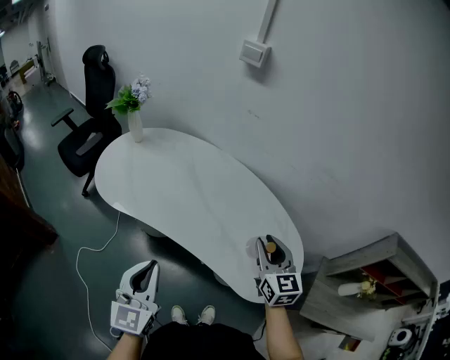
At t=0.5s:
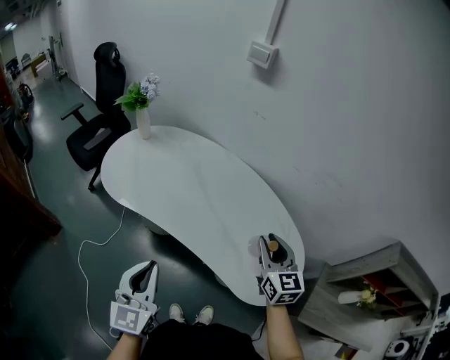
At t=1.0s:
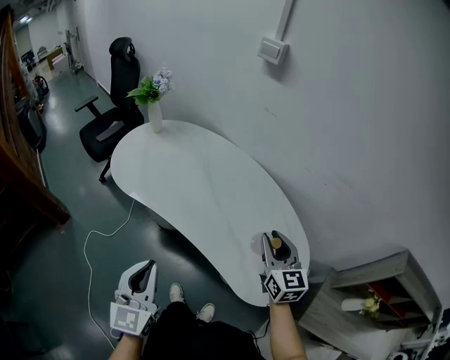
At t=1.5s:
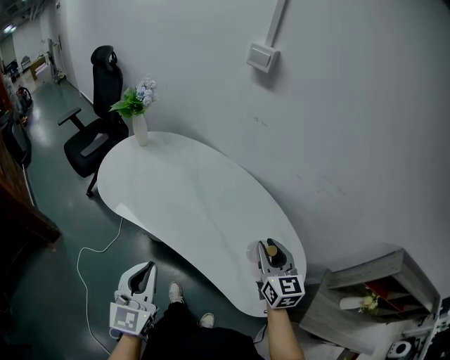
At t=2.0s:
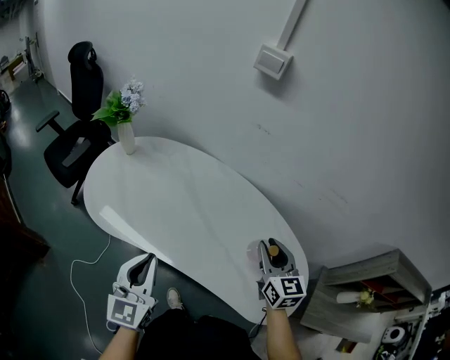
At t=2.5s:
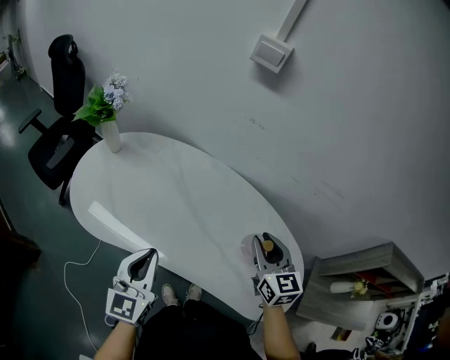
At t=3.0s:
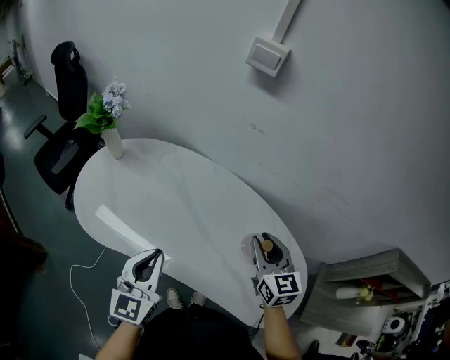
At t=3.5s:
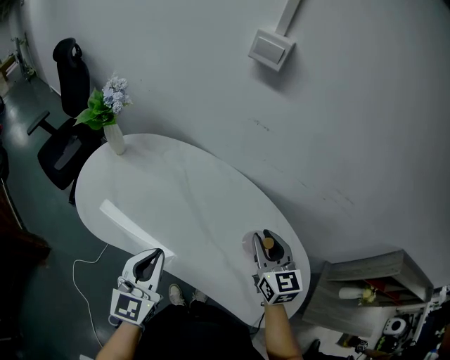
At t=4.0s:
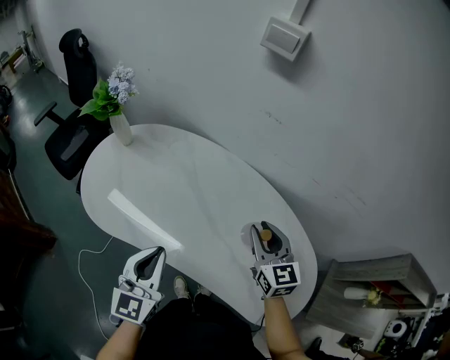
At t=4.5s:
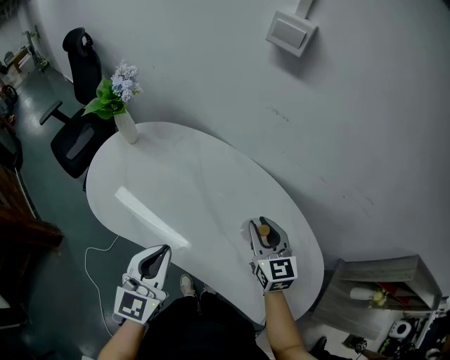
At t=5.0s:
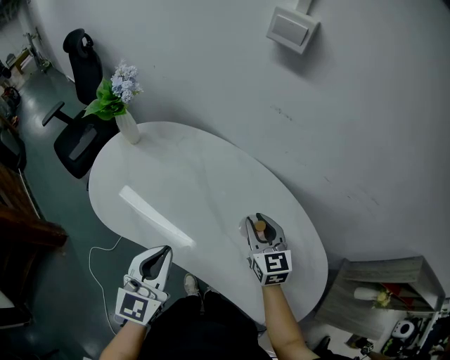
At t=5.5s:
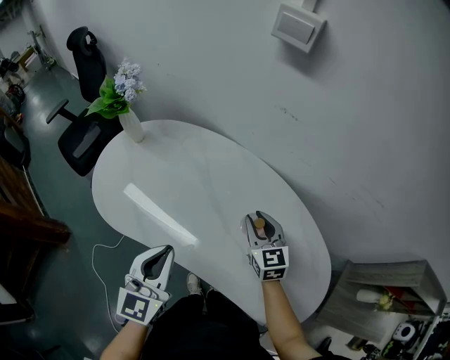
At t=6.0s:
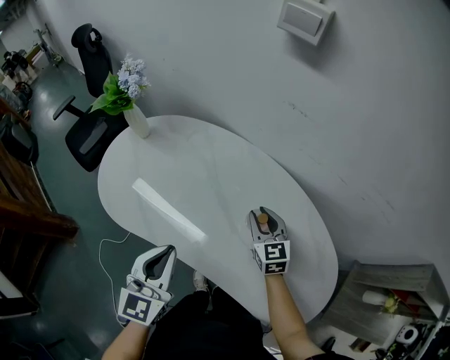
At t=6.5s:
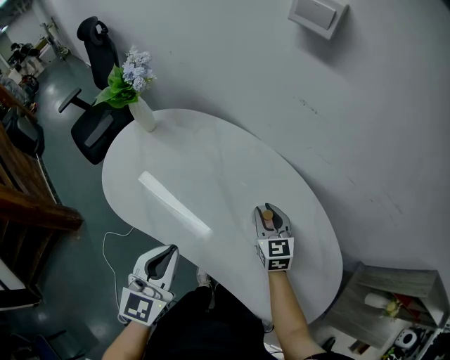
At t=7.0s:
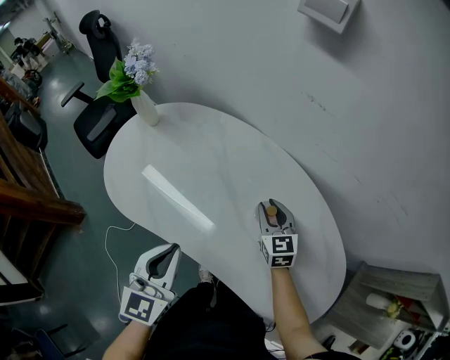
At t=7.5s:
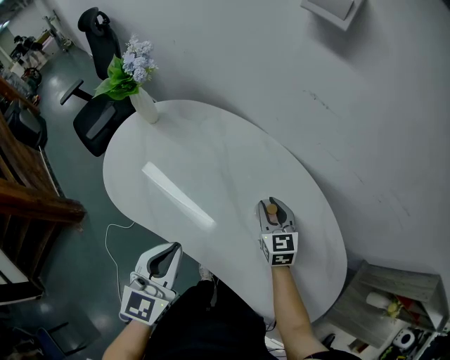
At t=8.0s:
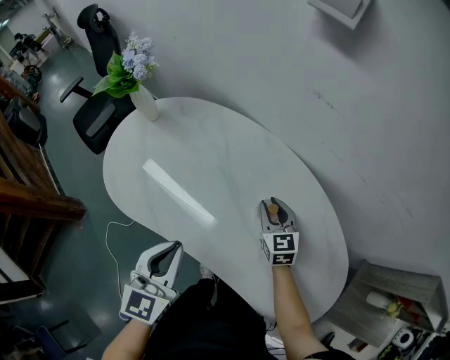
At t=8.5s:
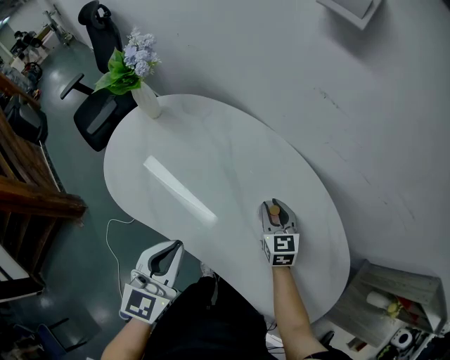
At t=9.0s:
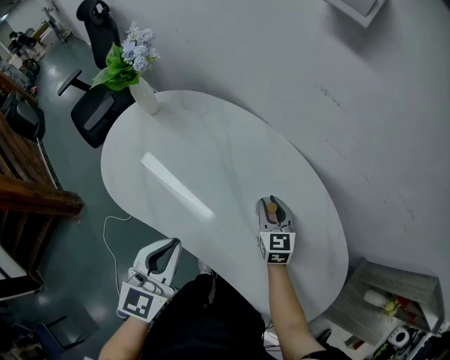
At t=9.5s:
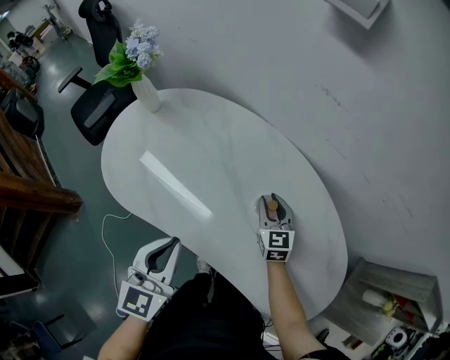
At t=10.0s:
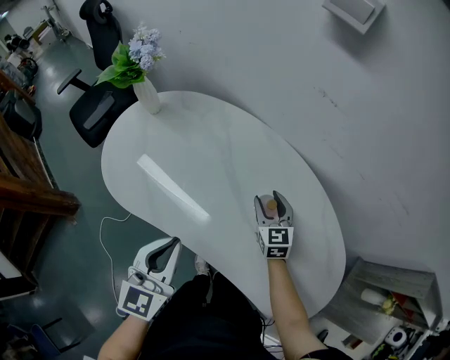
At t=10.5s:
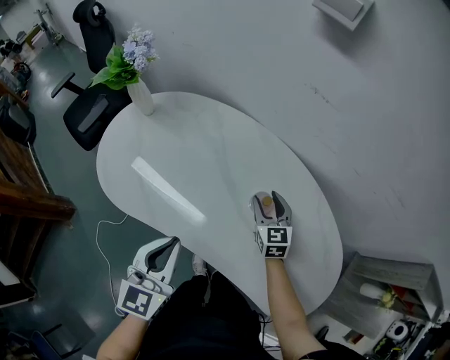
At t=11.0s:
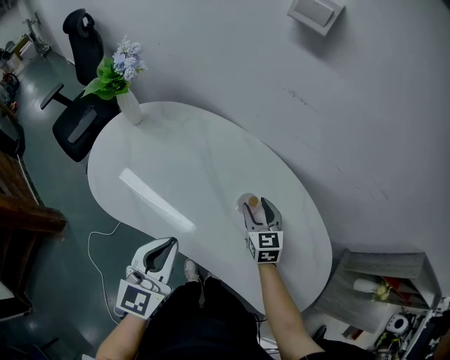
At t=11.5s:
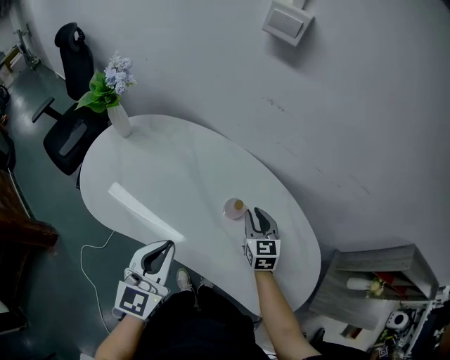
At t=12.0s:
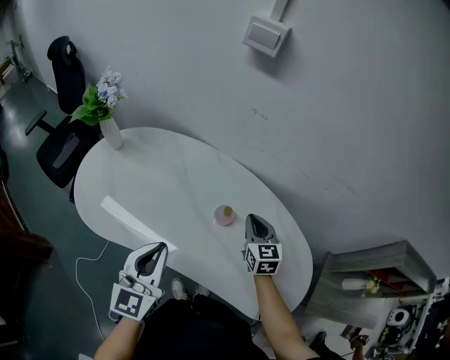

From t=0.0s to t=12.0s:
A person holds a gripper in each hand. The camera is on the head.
From t=0.0s to t=2.0s: The grippers both shift forward by about 10 cm.
From t=2.0s to t=4.0s: Both grippers travel together forward, approximately 5 cm.
From t=4.0s to t=6.0s: The right gripper goes about 15 cm downward and forward.
From t=6.0s to t=8.0s: The right gripper ends up some 5 cm from where it was.
From t=8.0s to t=10.0s: The right gripper opens.
From t=10.0s to t=12.0s: The left gripper ends up some 5 cm from where it was. Meanwhile the right gripper is displaced to the right, upward and backward by approximately 15 cm, and closes up.

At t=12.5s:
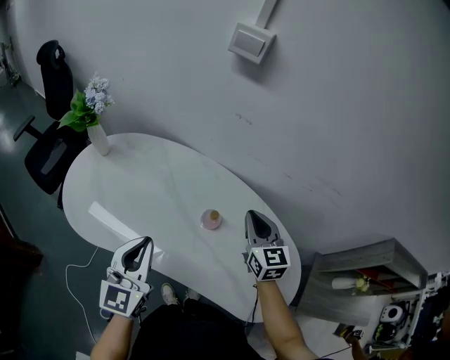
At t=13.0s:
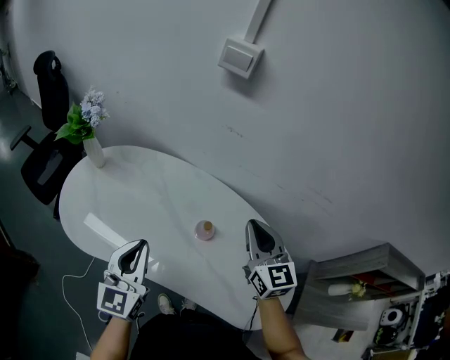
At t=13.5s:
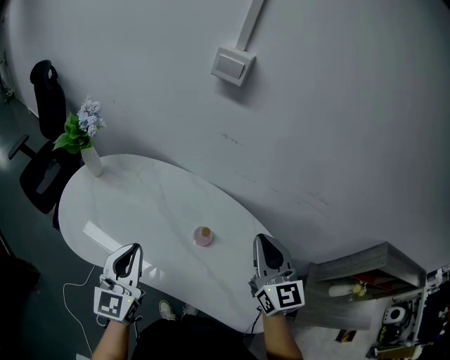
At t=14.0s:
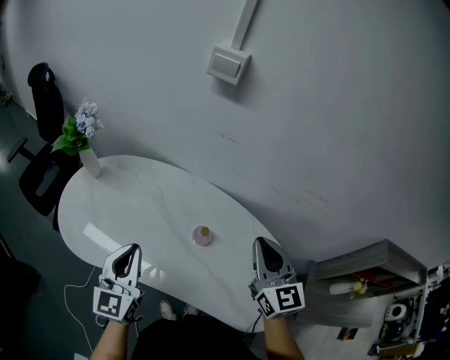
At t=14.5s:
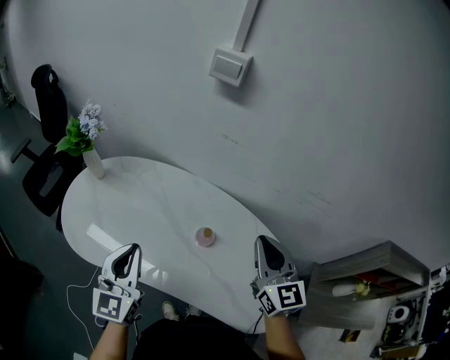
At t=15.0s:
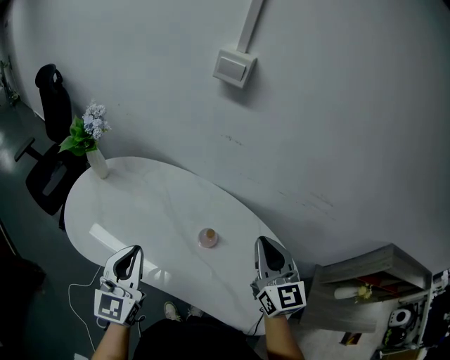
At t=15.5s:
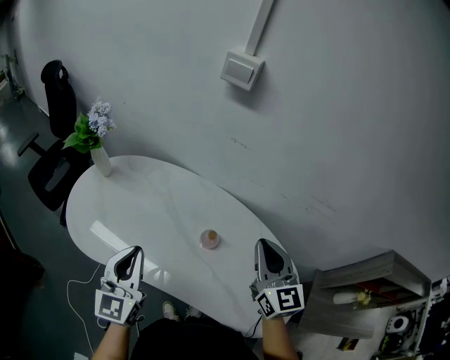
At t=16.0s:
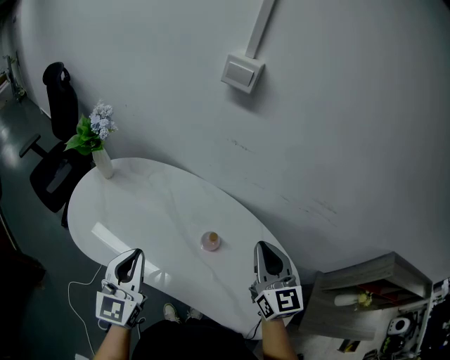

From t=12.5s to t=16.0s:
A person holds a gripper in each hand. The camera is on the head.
From t=12.5s to t=14.5s: The right gripper is displaced upward and backward by approximately 10 cm.
From t=14.5s to t=16.0s: The grippers make only small movements.

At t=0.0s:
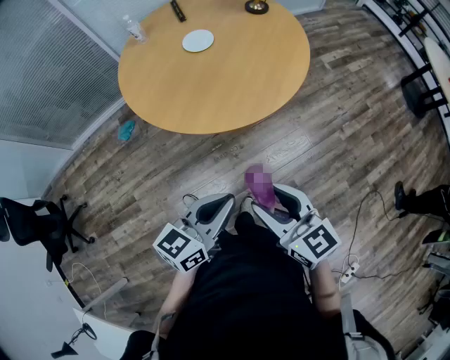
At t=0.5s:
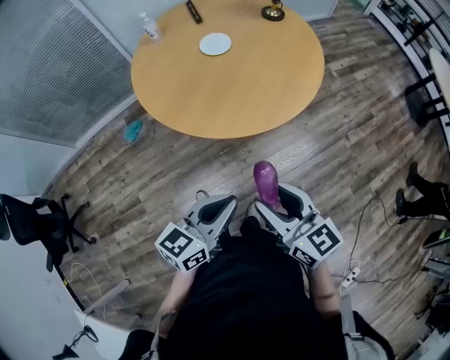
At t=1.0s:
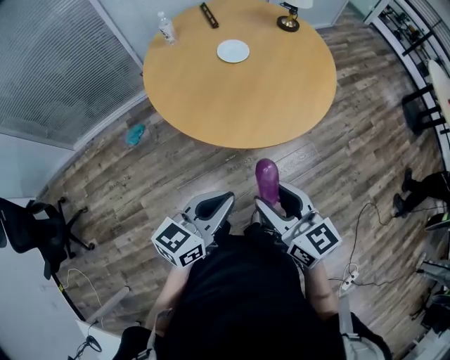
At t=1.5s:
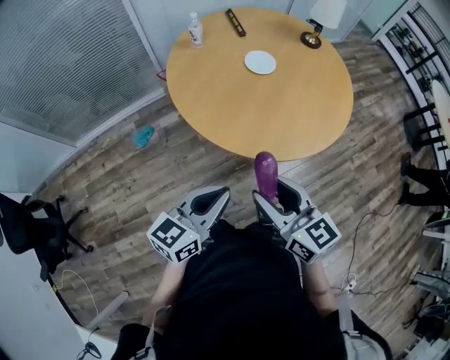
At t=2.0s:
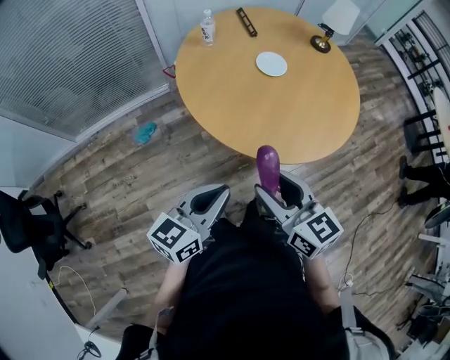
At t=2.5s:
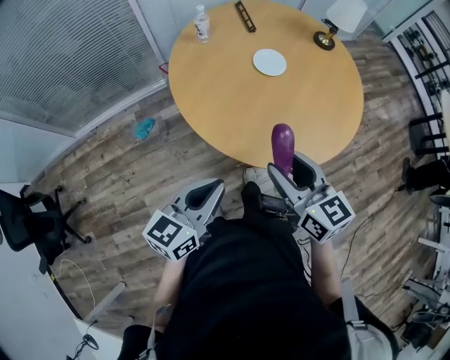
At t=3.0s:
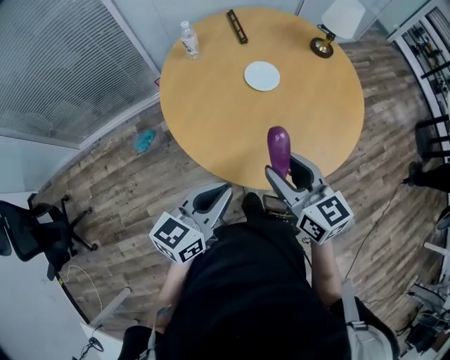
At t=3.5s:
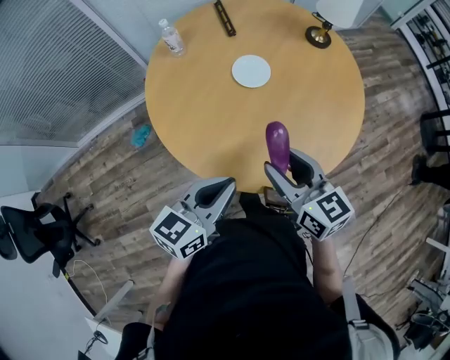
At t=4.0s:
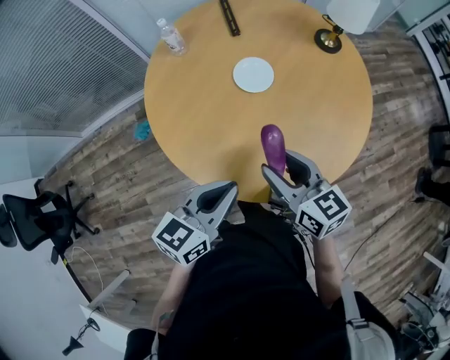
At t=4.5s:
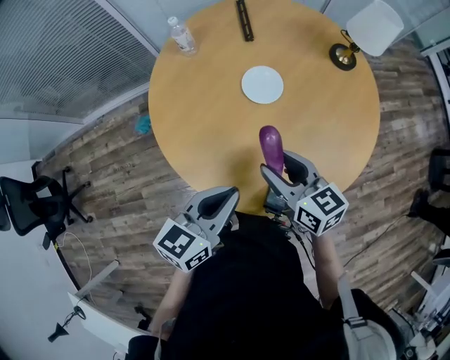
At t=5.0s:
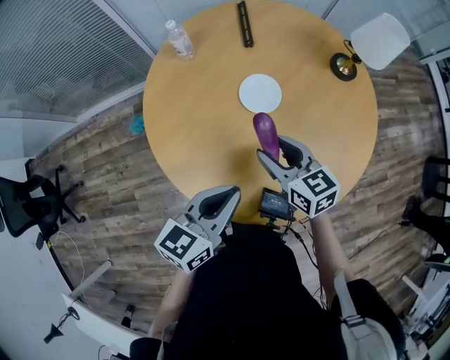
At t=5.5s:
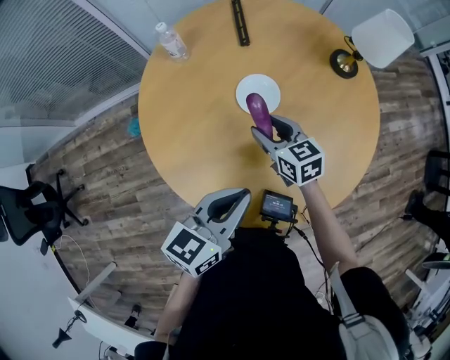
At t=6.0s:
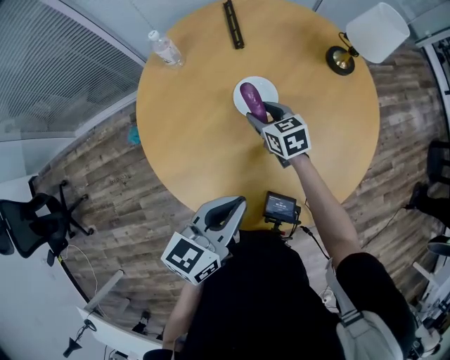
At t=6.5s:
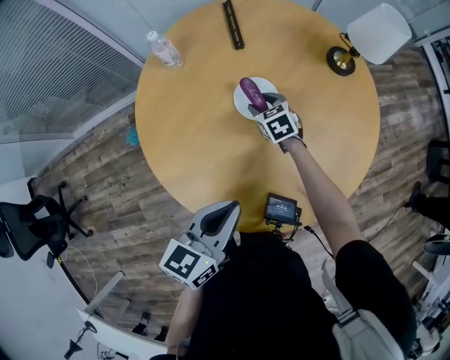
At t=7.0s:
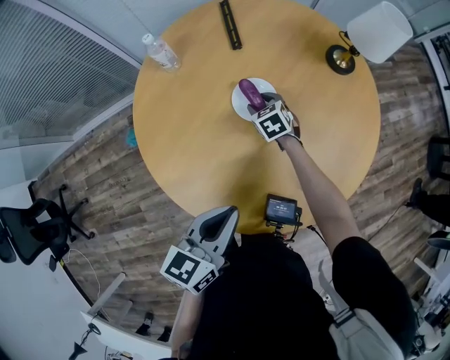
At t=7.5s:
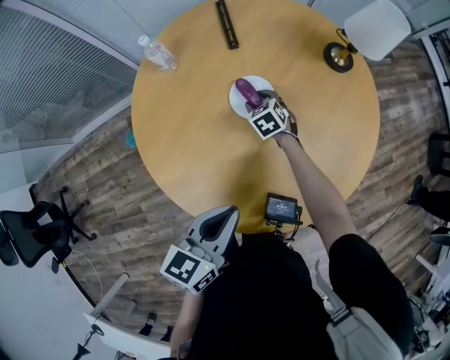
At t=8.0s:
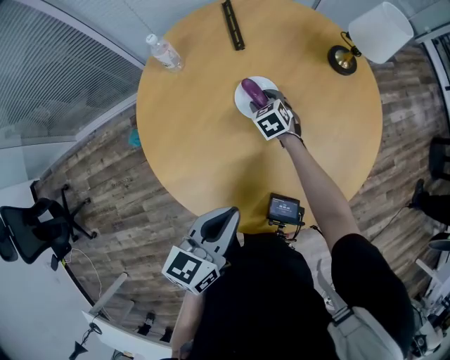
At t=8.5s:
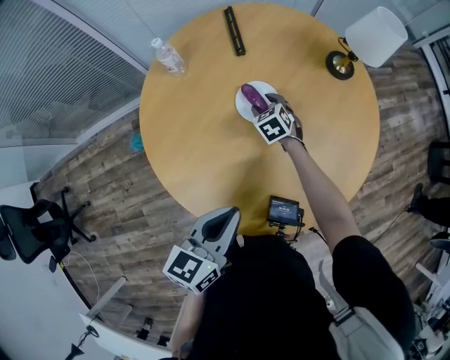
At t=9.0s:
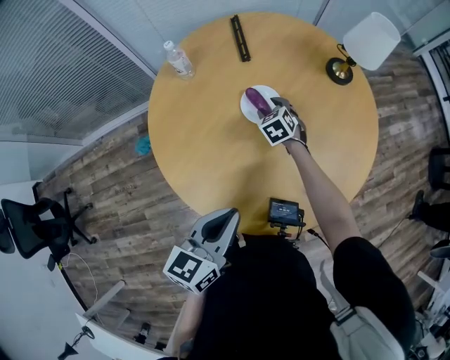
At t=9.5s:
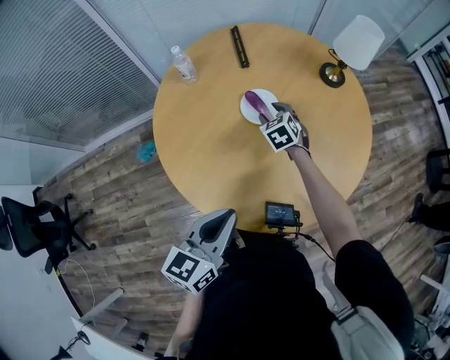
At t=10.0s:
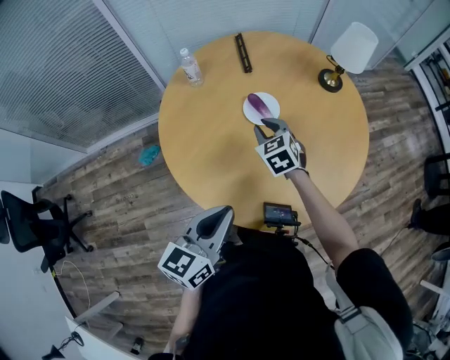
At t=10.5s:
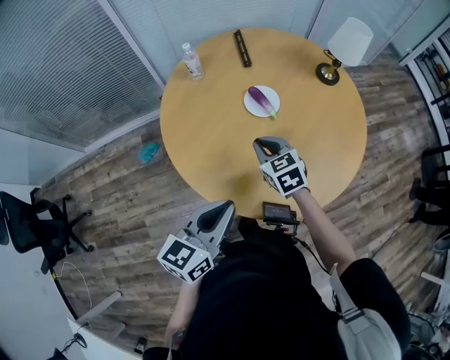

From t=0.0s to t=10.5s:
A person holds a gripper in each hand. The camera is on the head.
From t=0.0s to t=2.0s: The right gripper is displaced to the left and forward by some 35 cm. The left gripper heads to the left, covering about 35 cm.
From t=2.0s to t=4.0s: The grippers both shift forward and to the right by about 30 cm.
From t=4.0s to t=6.5s: The right gripper goes roughly 40 cm forward and downward, and points its fingers some 30 degrees further downward; the left gripper travels forward by some 10 cm.
From t=6.5s to t=8.5s: The grippers stay close to where they were, moving slightly.
From t=8.5s to t=10.5s: The left gripper heads backward, covering some 10 cm; the right gripper travels backward and upward by approximately 30 cm, and closes up.

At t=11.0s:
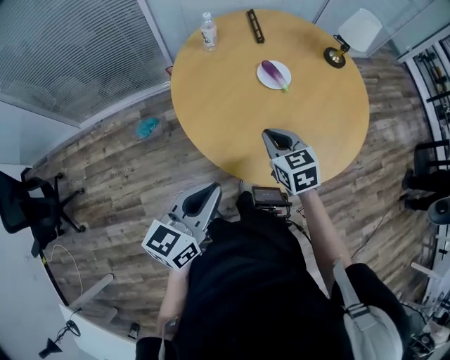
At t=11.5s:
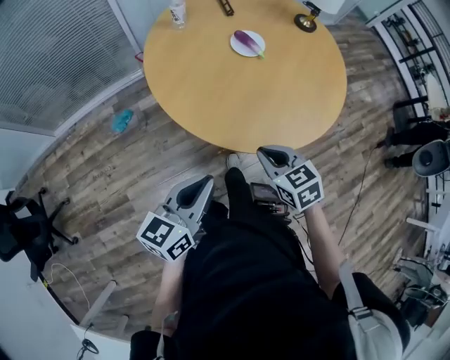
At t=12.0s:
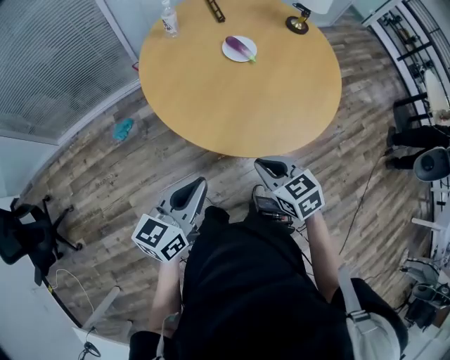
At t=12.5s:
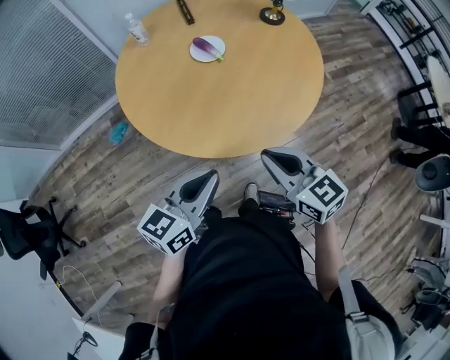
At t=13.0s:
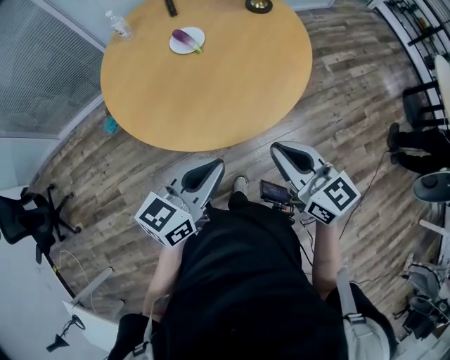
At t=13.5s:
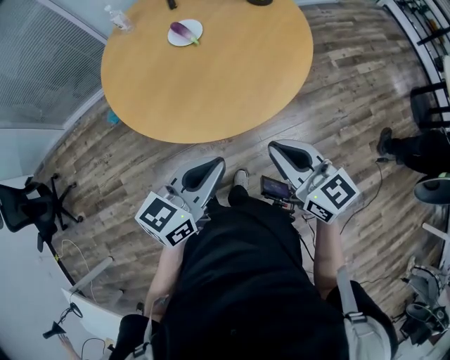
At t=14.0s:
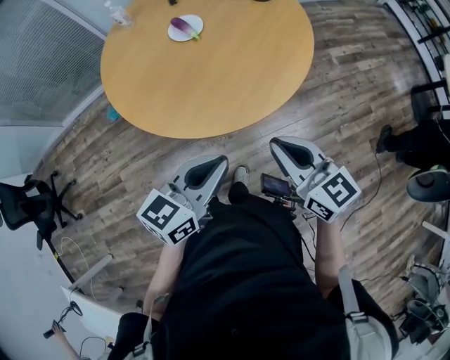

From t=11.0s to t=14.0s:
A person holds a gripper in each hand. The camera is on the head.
From t=11.0s to t=12.5s: The right gripper heads to the right, backward and upward, covering roughly 25 cm. Meanwhile the left gripper moves to the right, roughly 20 cm.
From t=12.5s to t=14.0s: Both grippers move to the right, roughly 15 cm.
